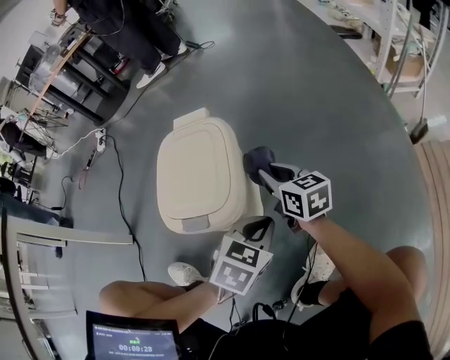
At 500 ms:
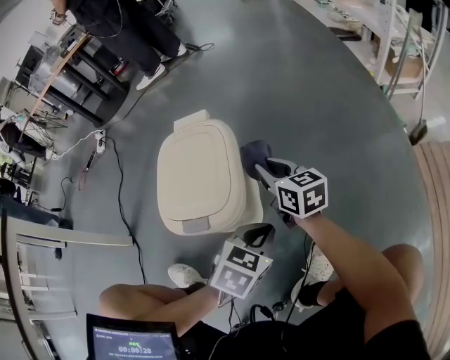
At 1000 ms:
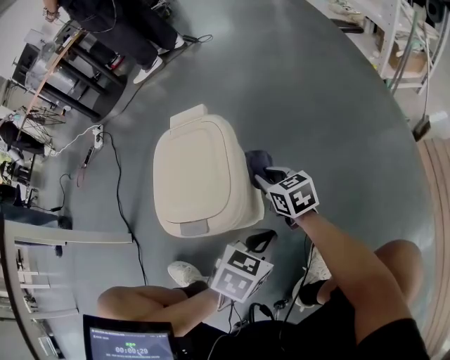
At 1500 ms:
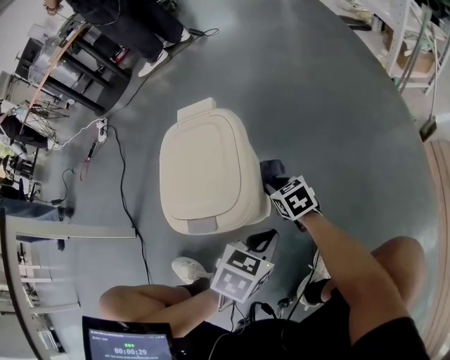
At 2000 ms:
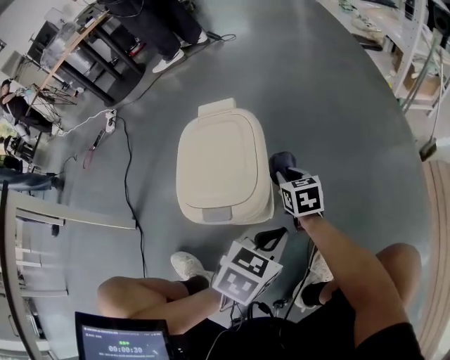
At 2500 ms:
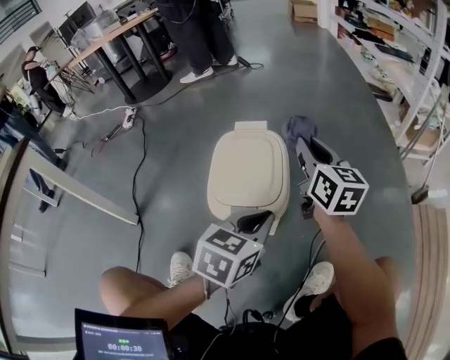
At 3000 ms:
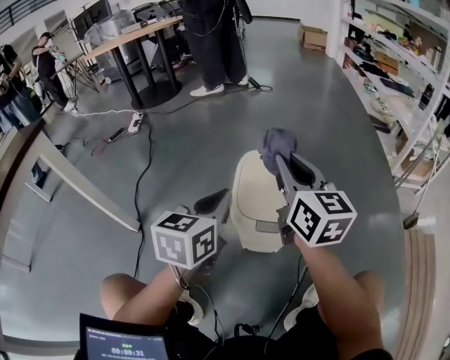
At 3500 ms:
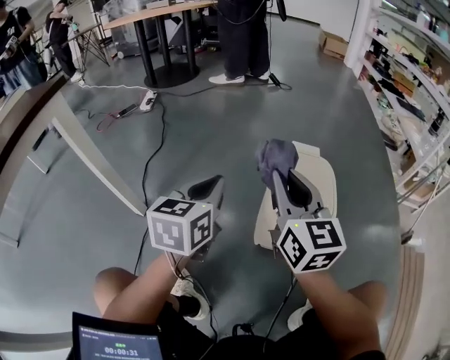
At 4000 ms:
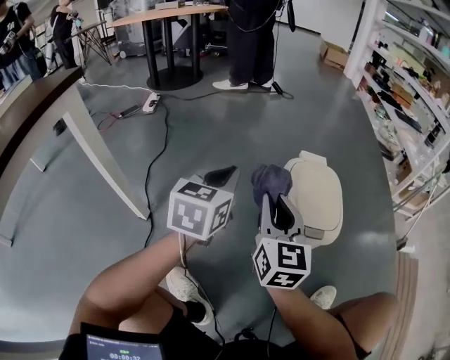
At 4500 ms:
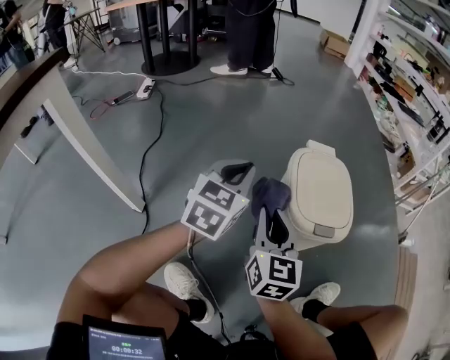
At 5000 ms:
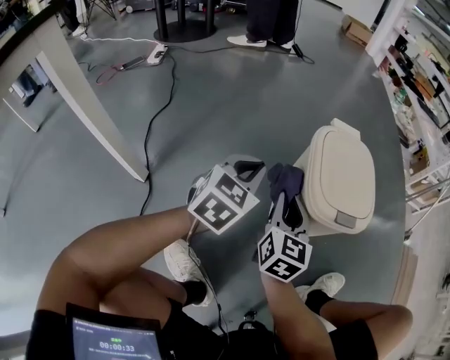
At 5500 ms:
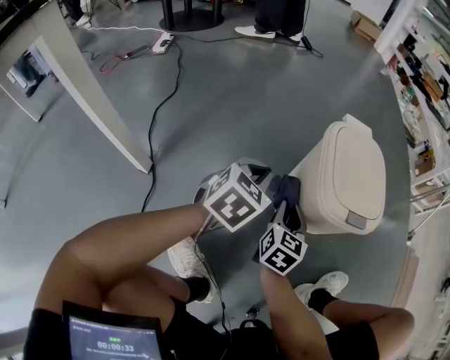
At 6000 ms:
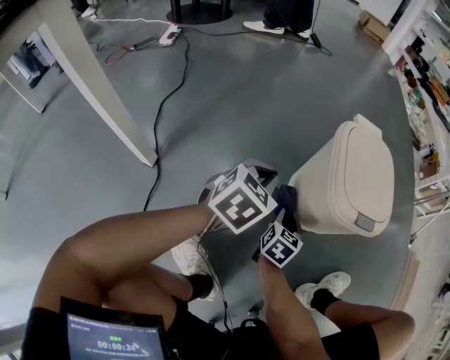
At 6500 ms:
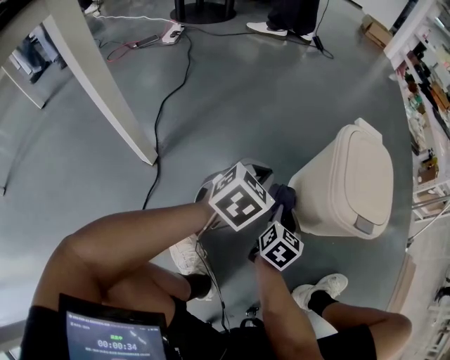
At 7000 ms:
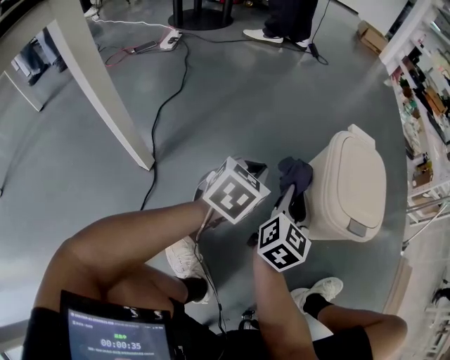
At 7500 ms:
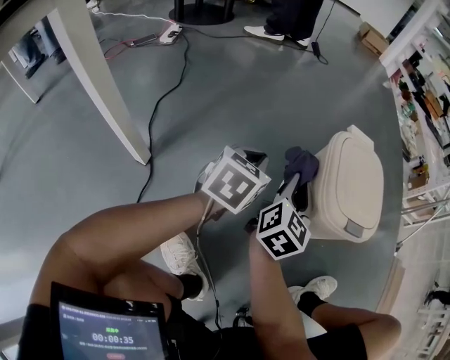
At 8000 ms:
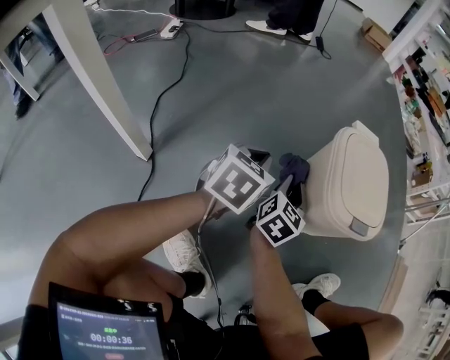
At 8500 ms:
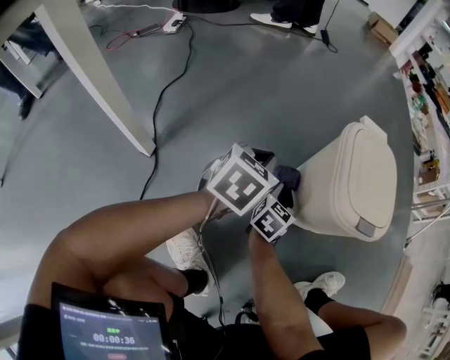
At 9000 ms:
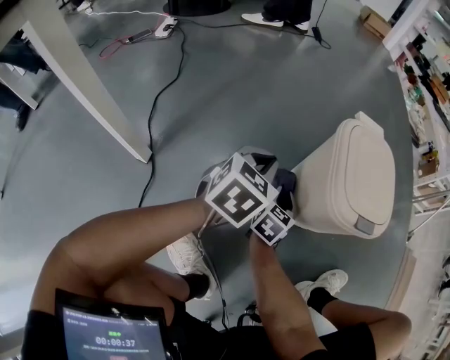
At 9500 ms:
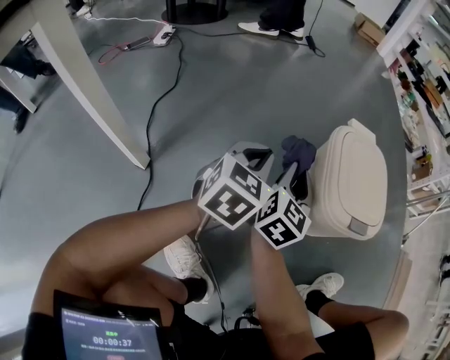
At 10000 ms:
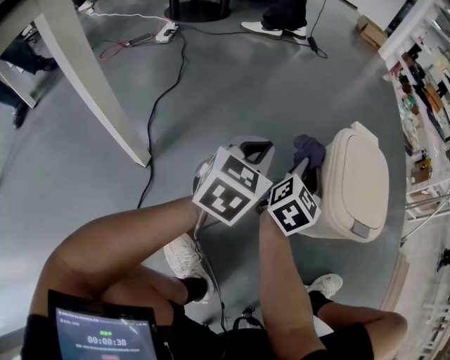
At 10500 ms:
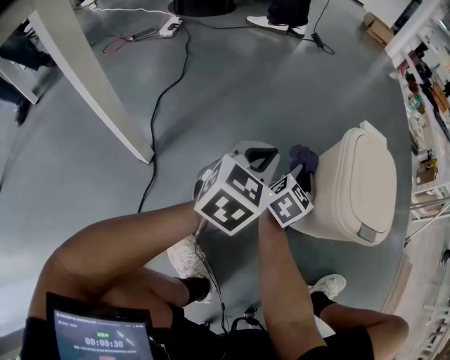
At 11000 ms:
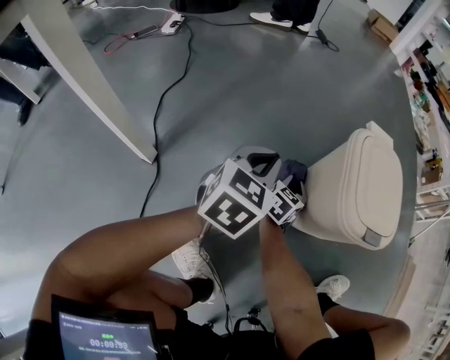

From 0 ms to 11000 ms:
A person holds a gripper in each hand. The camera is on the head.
From 0 ms to 2000 ms: The right gripper is displaced downward by roughly 5 cm, and rotates some 20 degrees.
From 2000 ms to 3500 ms: The right gripper travels upward and to the left by some 40 cm, and angles its fingers upward, by some 40 degrees, while the left gripper shifts some 40 cm to the left and upward, and changes its angle by approximately 50 degrees.
From 3500 ms to 5500 ms: The left gripper is displaced downward by some 15 cm, and swivels some 30 degrees. Meanwhile the right gripper goes approximately 30 cm downward, and turns by roughly 40 degrees.
From 5500 ms to 7500 ms: The left gripper is displaced to the left by some 5 cm. The right gripper shifts roughly 10 cm upward.
From 7500 ms to 9000 ms: The right gripper moves downward, about 15 cm, and changes its angle by some 20 degrees.
From 9000 ms to 11000 ms: The right gripper heads forward, covering approximately 5 cm, and goes upward and returns, some 15 cm each way.

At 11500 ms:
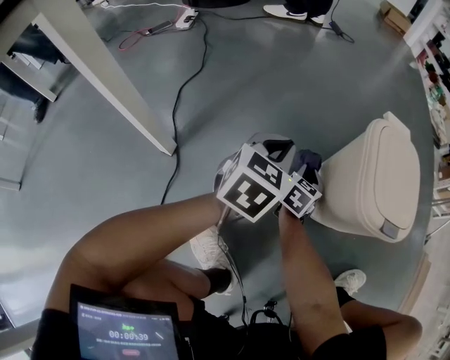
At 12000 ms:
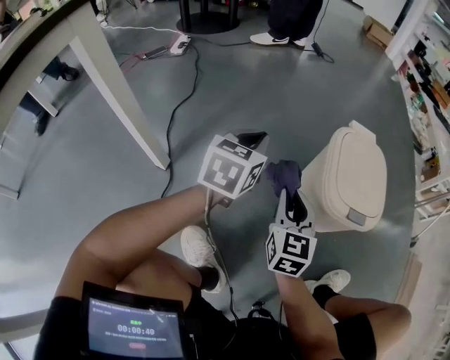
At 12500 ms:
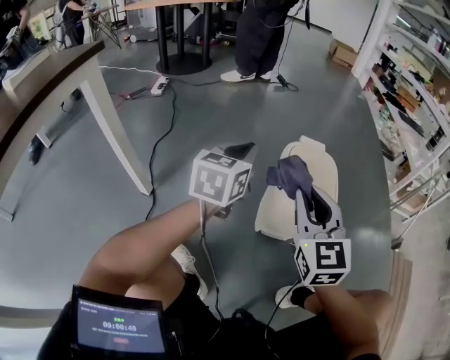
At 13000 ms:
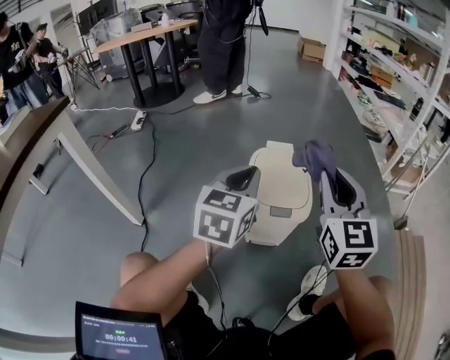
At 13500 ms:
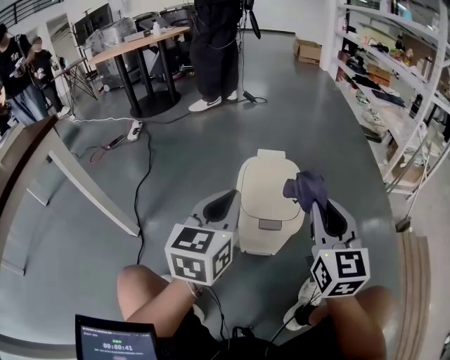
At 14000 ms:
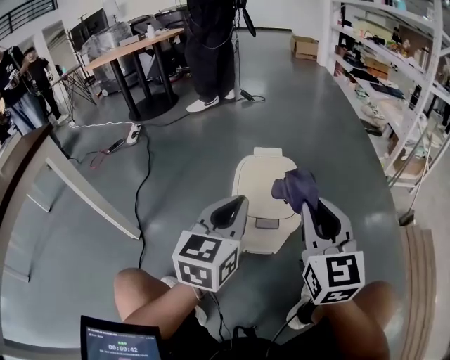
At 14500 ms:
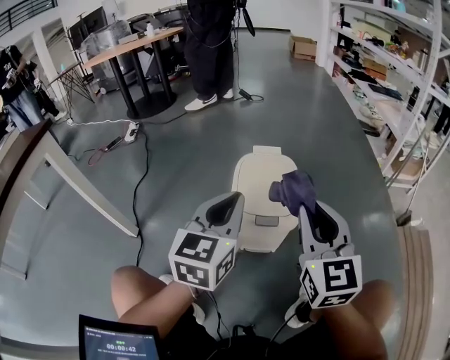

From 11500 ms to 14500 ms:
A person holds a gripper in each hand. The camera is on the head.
From 11500 ms to 13000 ms: The right gripper goes approximately 50 cm upward and to the right, and tilts its fingers approximately 30 degrees upward. The left gripper shifts approximately 30 cm upward and to the right.
From 13000 ms to 14500 ms: The right gripper moves roughly 5 cm.

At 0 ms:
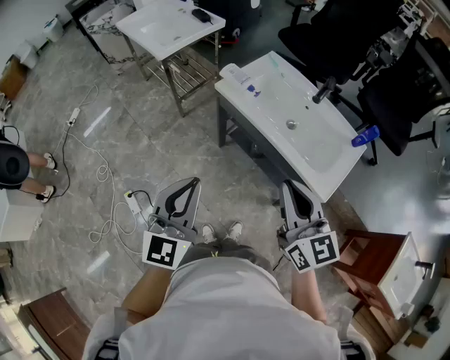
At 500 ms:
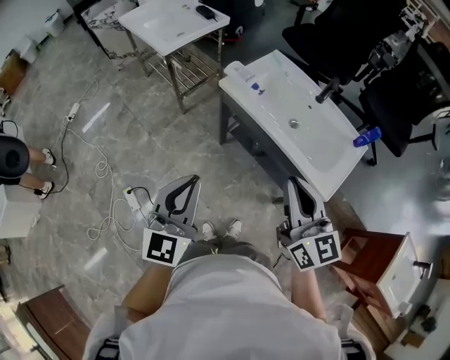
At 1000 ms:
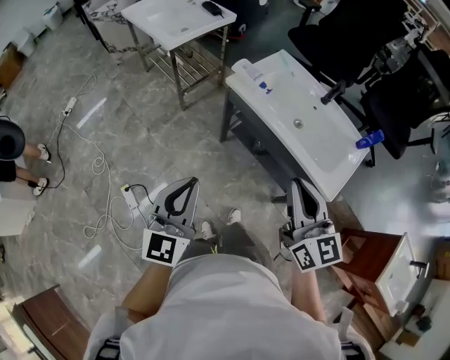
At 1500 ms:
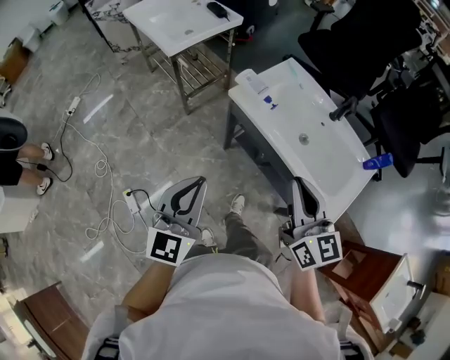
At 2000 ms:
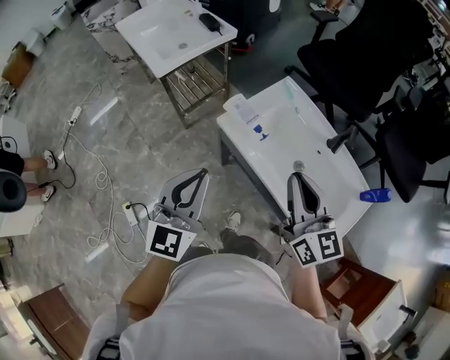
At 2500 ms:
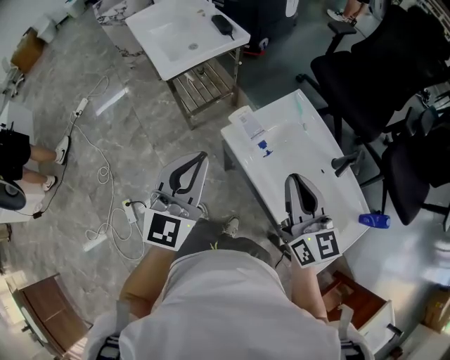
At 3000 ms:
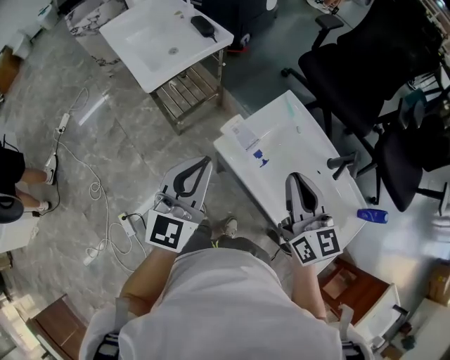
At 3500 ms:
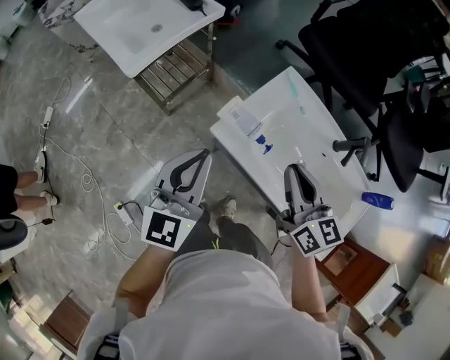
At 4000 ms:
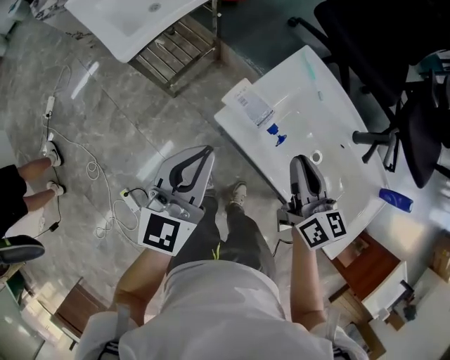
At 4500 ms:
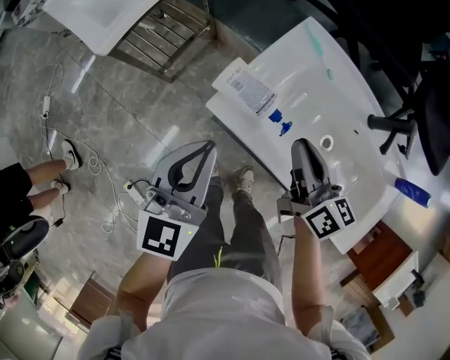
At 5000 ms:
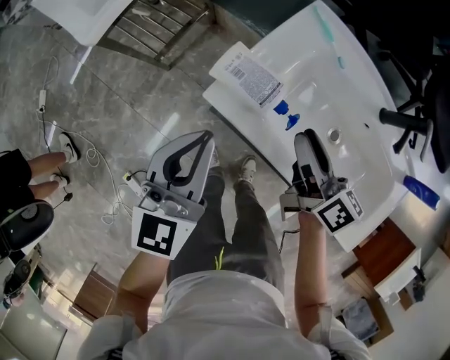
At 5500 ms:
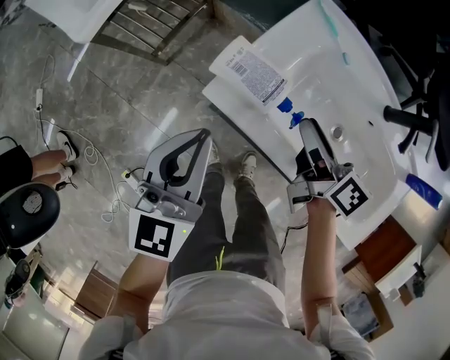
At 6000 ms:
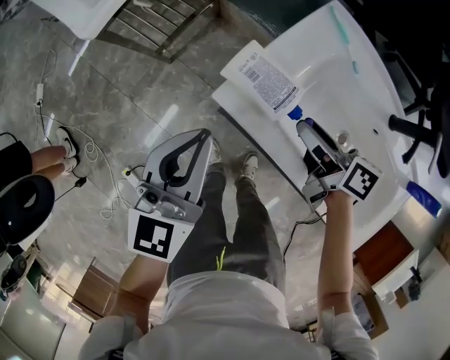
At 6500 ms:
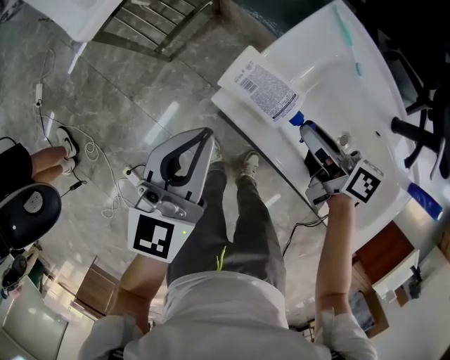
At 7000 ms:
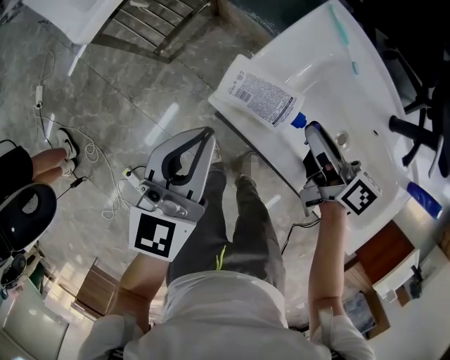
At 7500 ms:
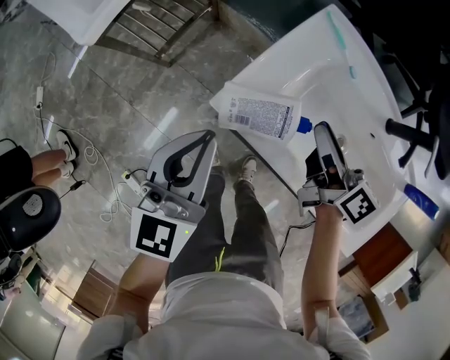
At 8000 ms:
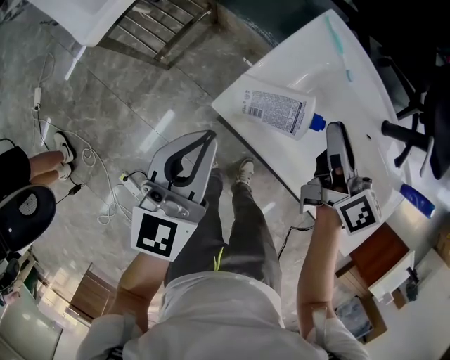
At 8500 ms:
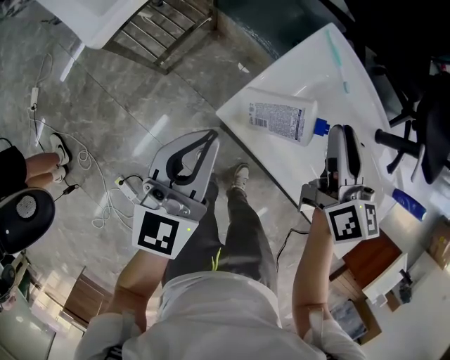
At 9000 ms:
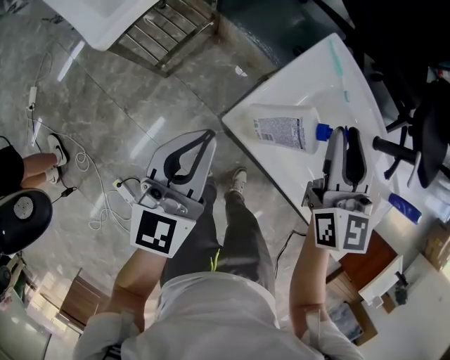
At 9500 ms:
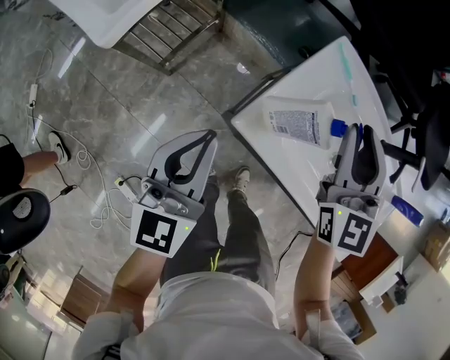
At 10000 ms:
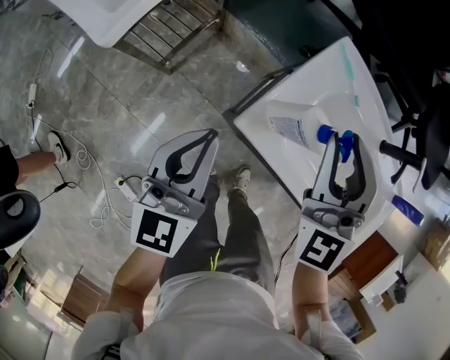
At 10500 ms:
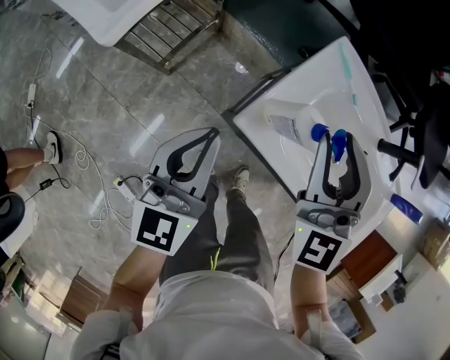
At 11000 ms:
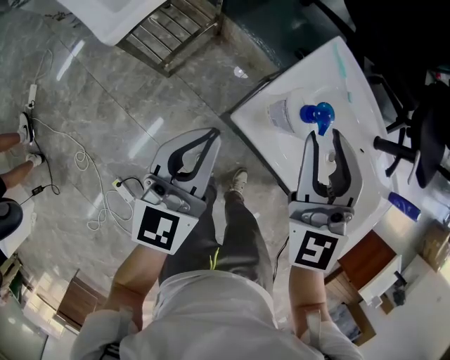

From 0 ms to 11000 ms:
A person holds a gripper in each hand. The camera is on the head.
From 0 ms to 2000 ms: Both grippers travel together forward, roughly 25 cm.
From 2000 ms to 3500 ms: The right gripper heads forward and downward, covering approximately 15 cm; the left gripper goes approximately 20 cm forward.
From 3500 ms to 5500 ms: Both grippers travel together downward, approximately 20 cm. The right gripper rotates some 40 degrees, and opens up.
From 7500 ms to 9000 ms: The left gripper moves to the left, roughly 5 cm, while the right gripper travels upward by approximately 10 cm, and rotates around the line of its fingers by some 50 degrees, counterclockwise from behind.
From 9000 ms to 11000 ms: The right gripper shifts about 10 cm to the left, and changes its angle by some 30 degrees.

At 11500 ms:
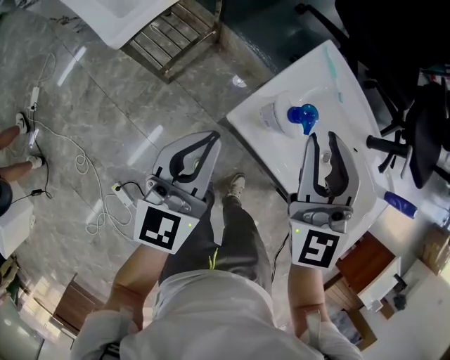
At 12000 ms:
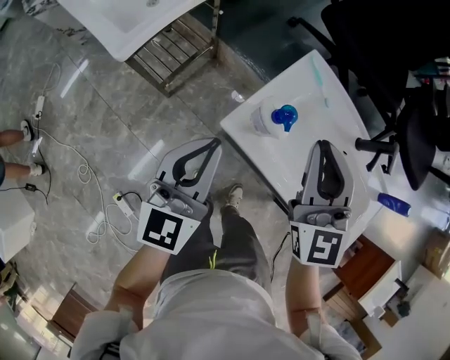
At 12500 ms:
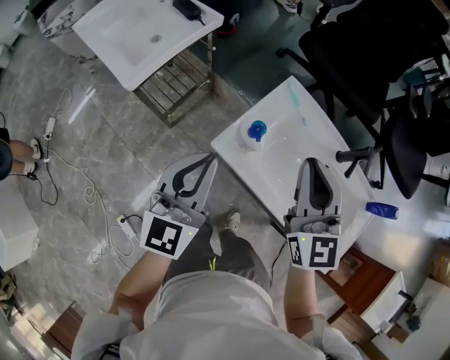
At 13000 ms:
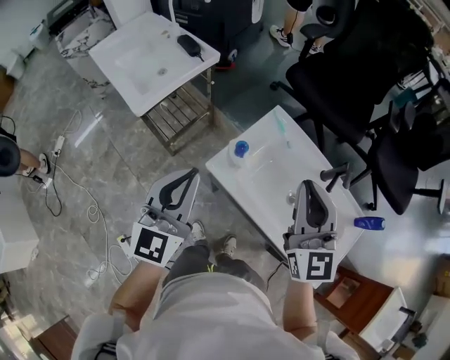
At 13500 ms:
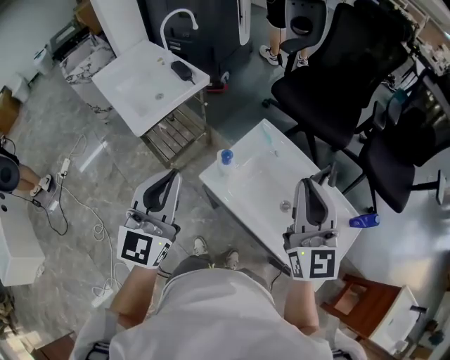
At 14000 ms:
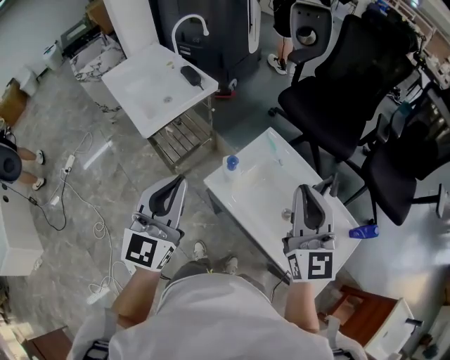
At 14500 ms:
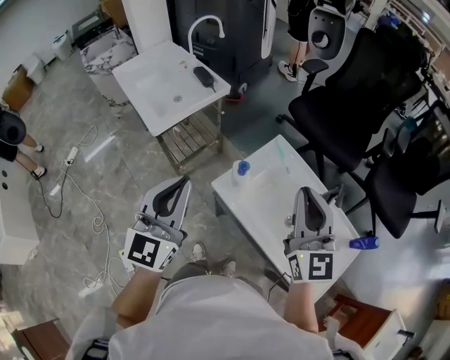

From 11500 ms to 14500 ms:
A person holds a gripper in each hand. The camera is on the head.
From 11500 ms to 13000 ms: The left gripper heads upward, covering about 20 cm; the right gripper goes about 20 cm upward, to the right and backward.
From 13000 ms to 14500 ms: The left gripper moves upward, some 10 cm, while the right gripper heads upward, covering roughly 5 cm.
